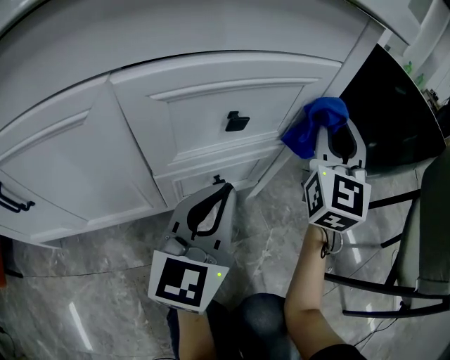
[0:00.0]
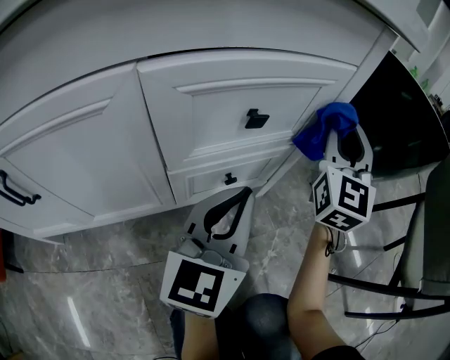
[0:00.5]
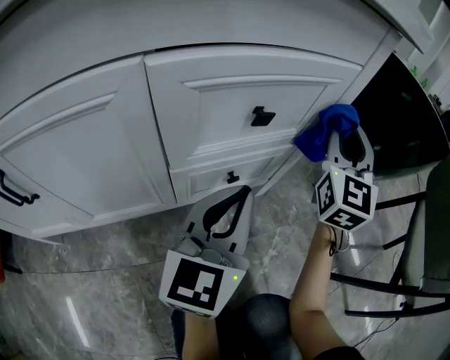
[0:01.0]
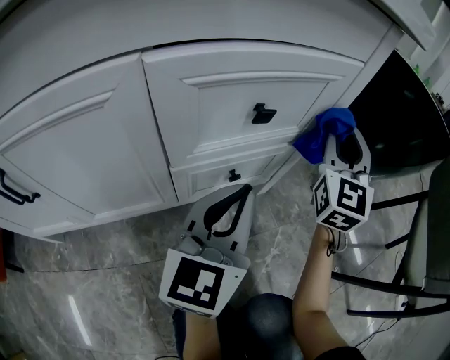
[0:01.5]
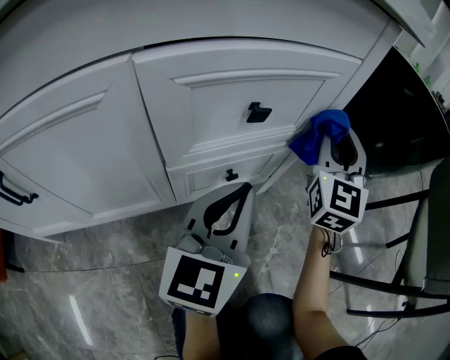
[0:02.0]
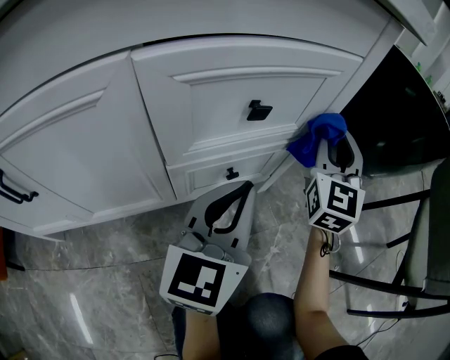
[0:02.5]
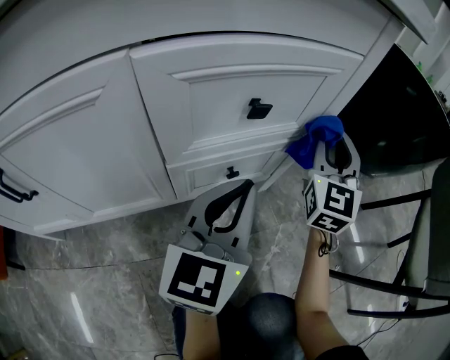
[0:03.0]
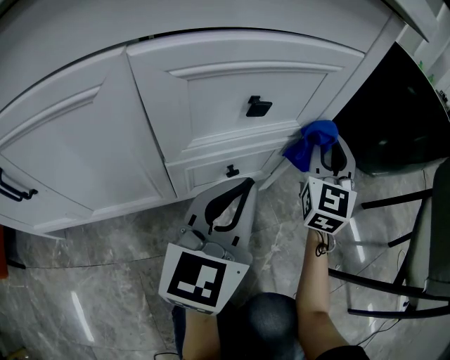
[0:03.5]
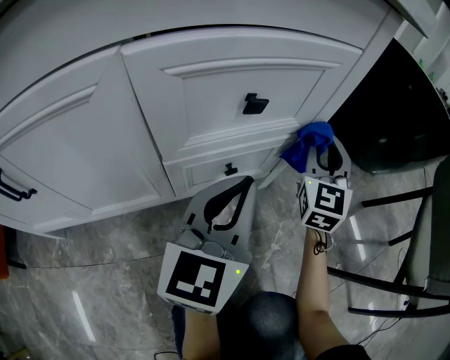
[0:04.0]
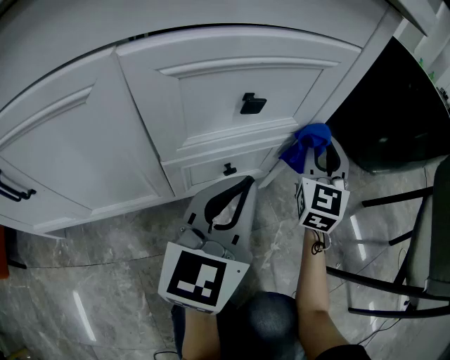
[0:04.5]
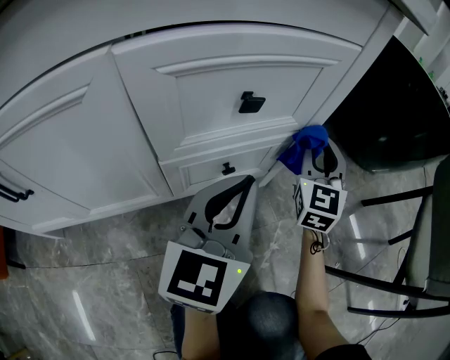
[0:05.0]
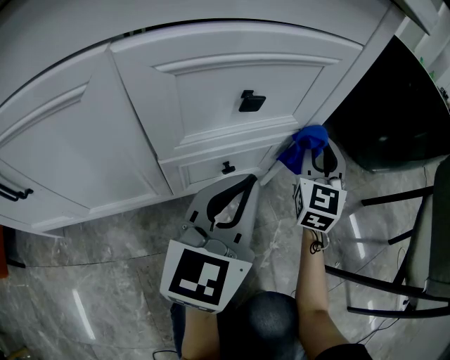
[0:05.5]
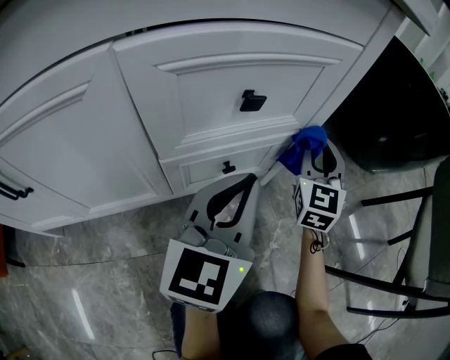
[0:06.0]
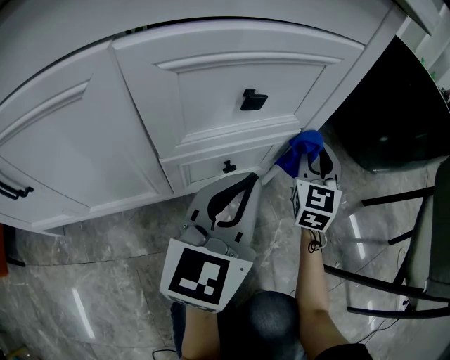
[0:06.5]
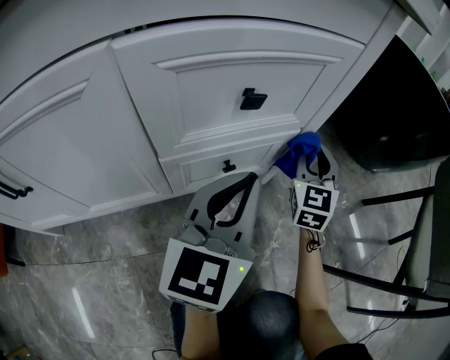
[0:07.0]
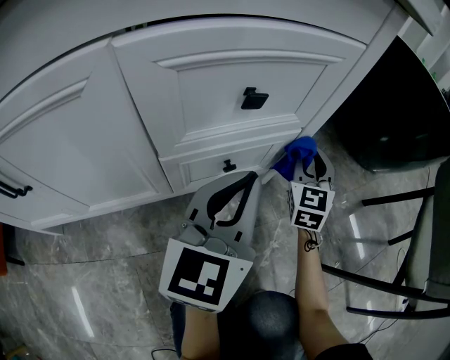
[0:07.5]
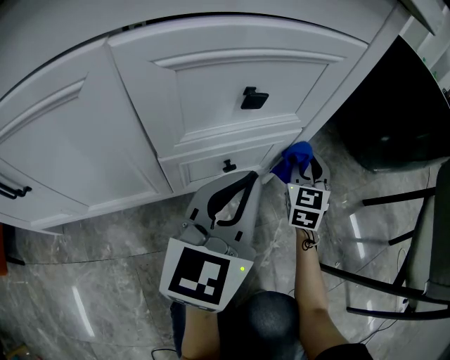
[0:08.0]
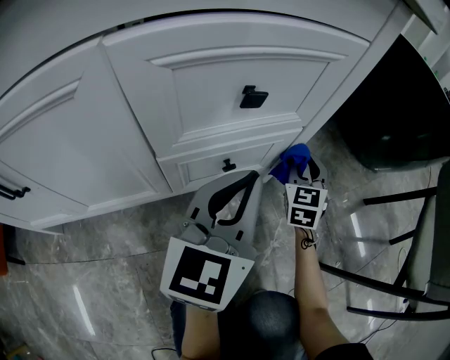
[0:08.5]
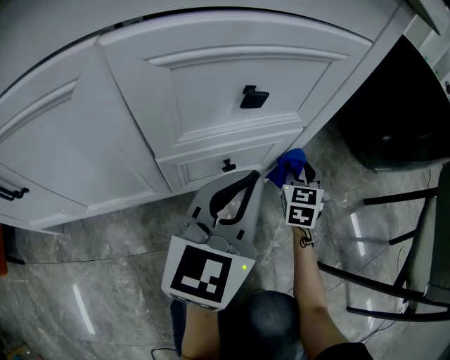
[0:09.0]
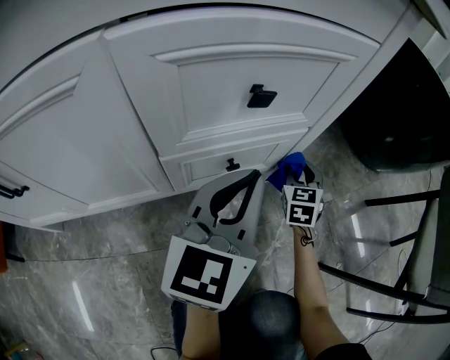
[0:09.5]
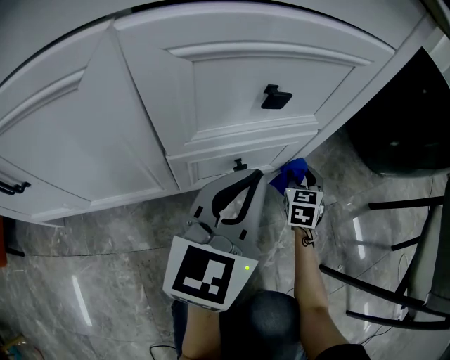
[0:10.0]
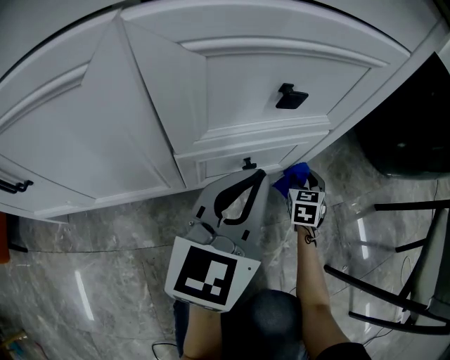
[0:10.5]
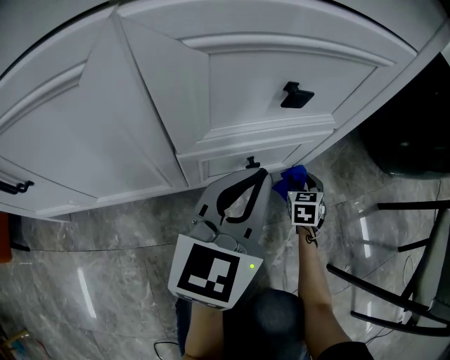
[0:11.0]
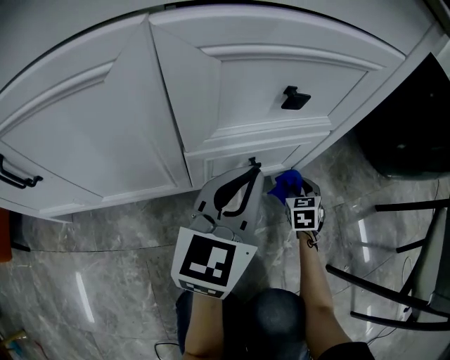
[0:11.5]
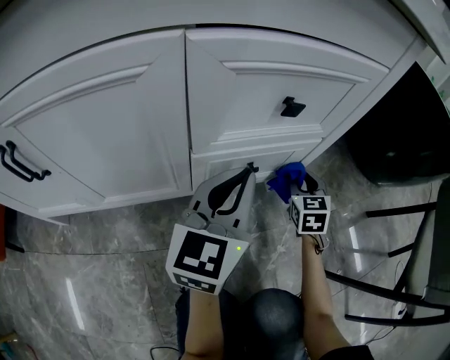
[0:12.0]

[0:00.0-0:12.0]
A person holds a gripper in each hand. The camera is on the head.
0:00.0 to 0:02.0: The grippers make only small movements.
0:02.0 to 0:04.0: The right gripper moves downward, roughly 5 cm.
0:04.0 to 0:06.0: The grippers stay close to where they were, moving slightly.
0:06.0 to 0:08.0: The right gripper heads downward, covering about 10 cm.
0:08.0 to 0:10.0: The right gripper goes about 10 cm downward.
0:10.0 to 0:12.0: The right gripper shifts some 5 cm upward.

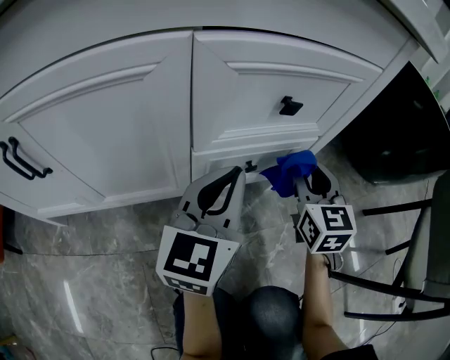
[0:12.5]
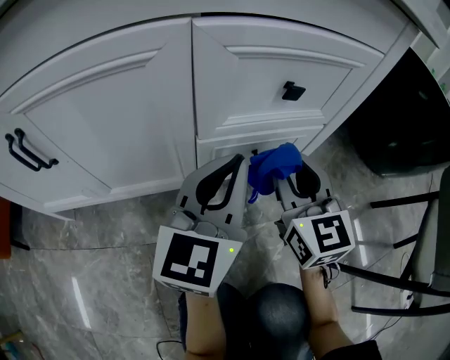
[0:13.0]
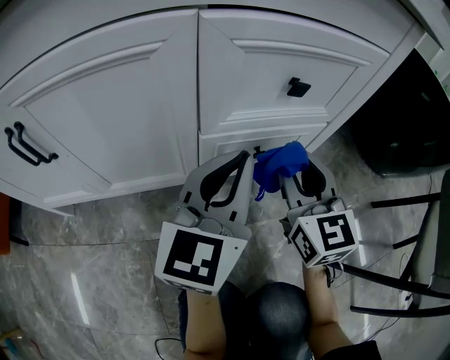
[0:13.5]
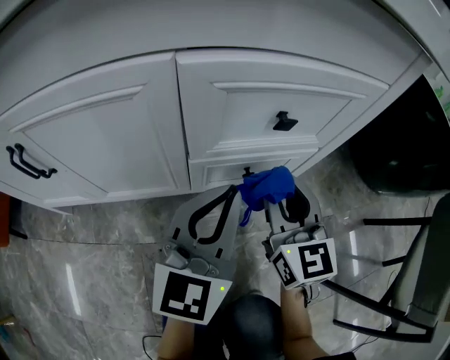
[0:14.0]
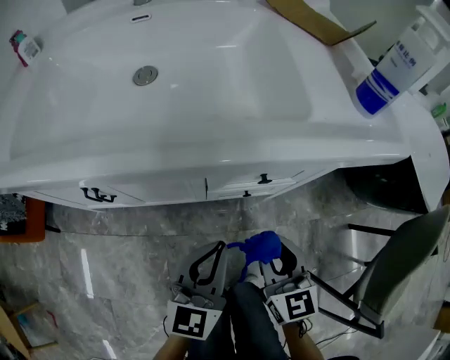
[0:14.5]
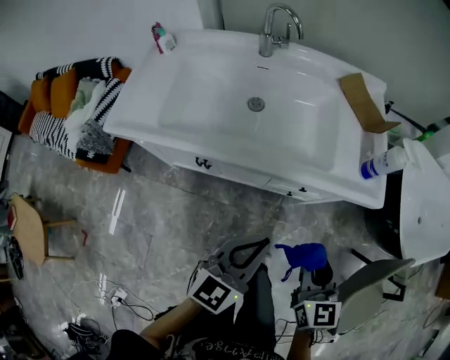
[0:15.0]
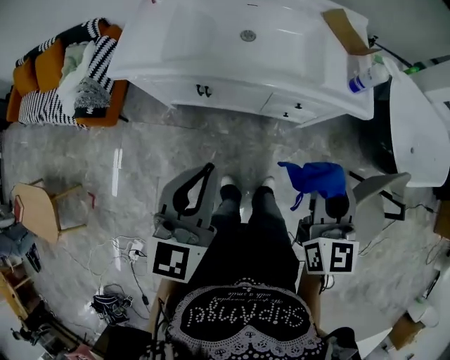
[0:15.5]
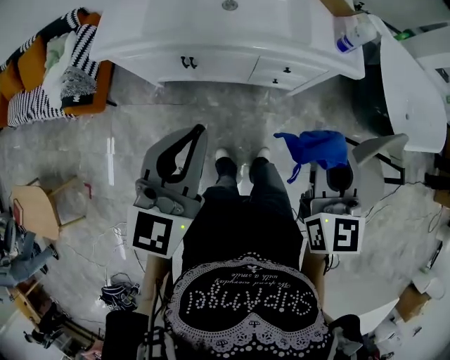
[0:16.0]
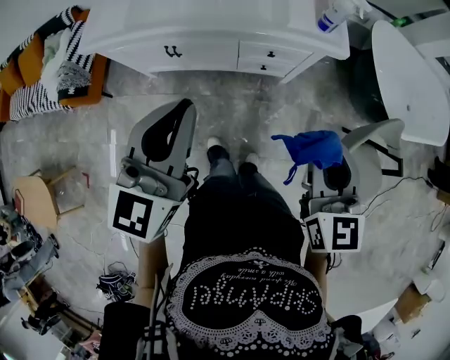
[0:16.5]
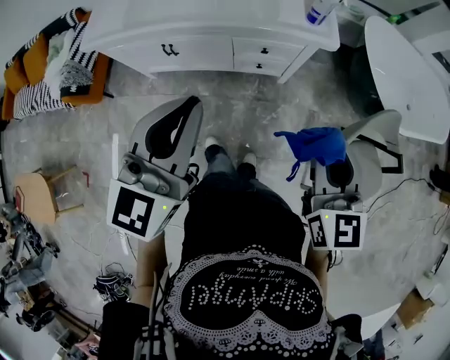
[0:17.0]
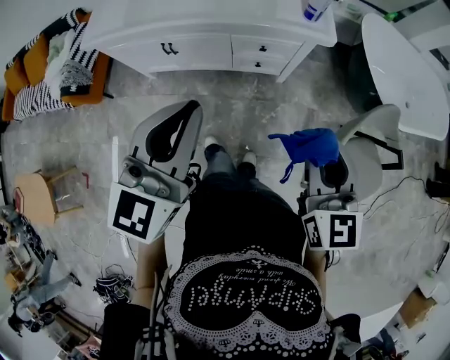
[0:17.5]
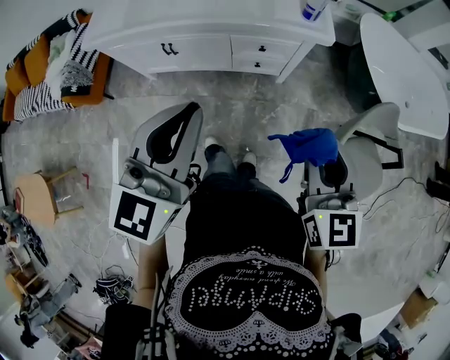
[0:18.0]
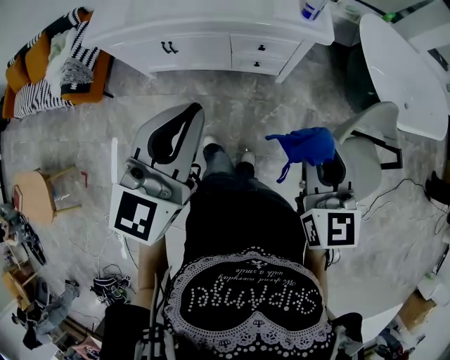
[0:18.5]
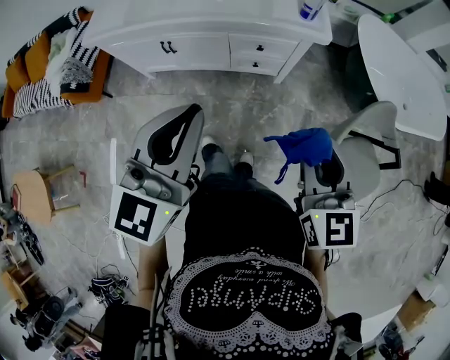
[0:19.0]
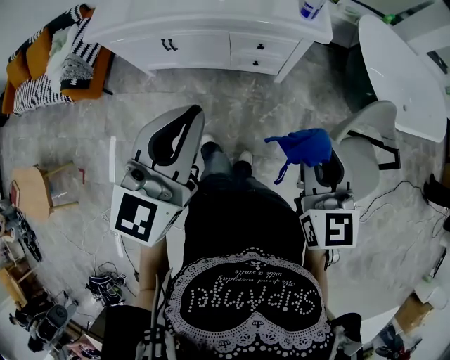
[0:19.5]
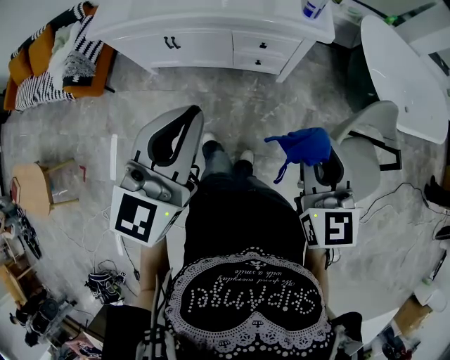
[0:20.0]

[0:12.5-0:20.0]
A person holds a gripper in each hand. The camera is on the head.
0:12.5 to 0:14.5: The right gripper goes approximately 25 cm upward, backward and to the left, and rotates some 20 degrees. The left gripper shifts some 20 cm upward and backward.
0:14.5 to 0:16.5: The left gripper goes approximately 50 cm upward; the right gripper shifts roughly 50 cm upward and backward.
0:16.5 to 0:18.0: The right gripper shifts about 5 cm backward, while the left gripper heads backward and to the right, covering about 10 cm.
0:18.0 to 0:20.0: The grippers make only small movements.

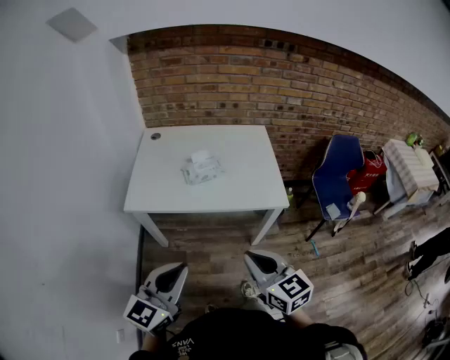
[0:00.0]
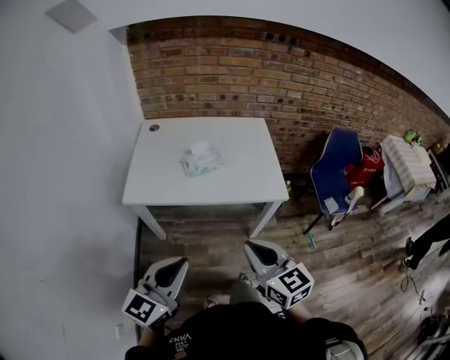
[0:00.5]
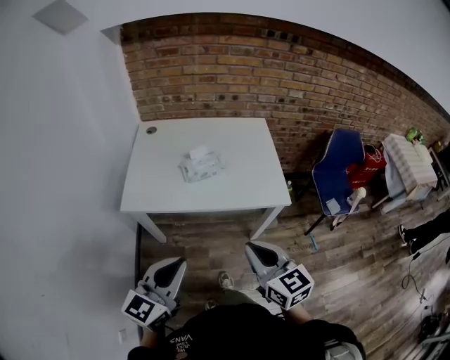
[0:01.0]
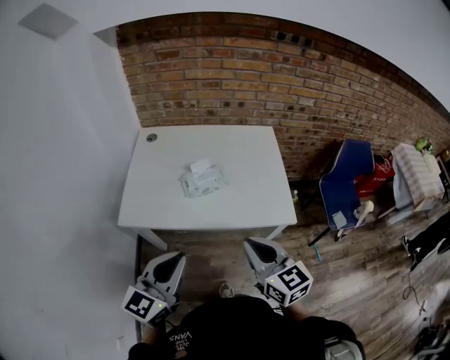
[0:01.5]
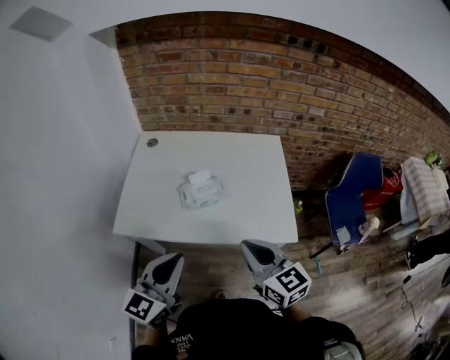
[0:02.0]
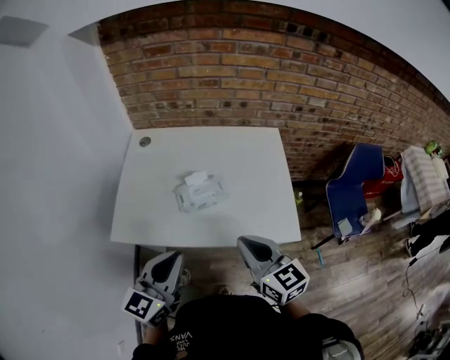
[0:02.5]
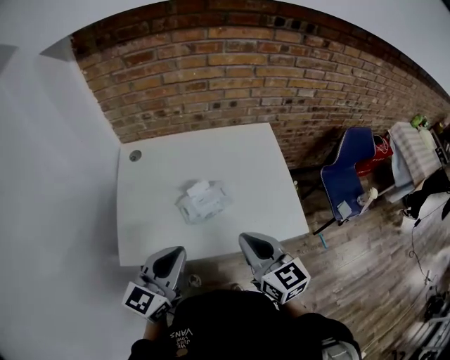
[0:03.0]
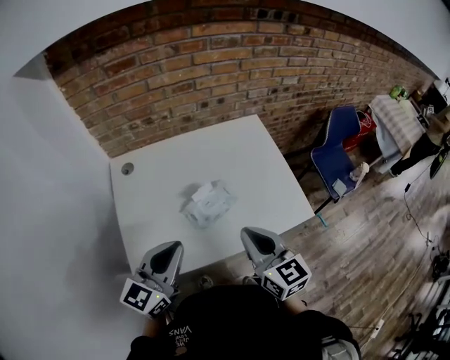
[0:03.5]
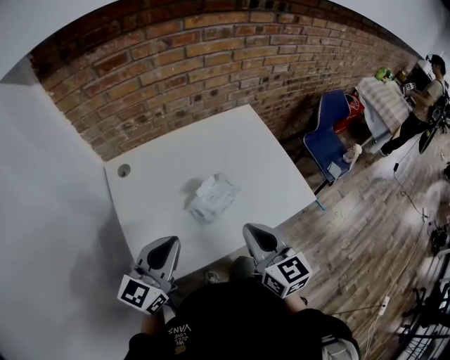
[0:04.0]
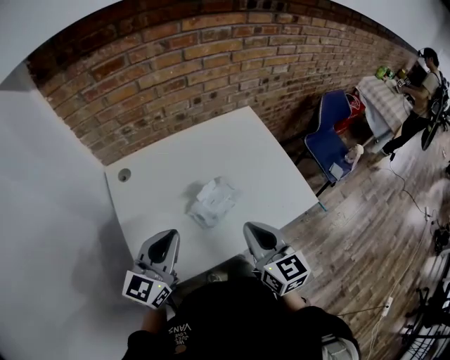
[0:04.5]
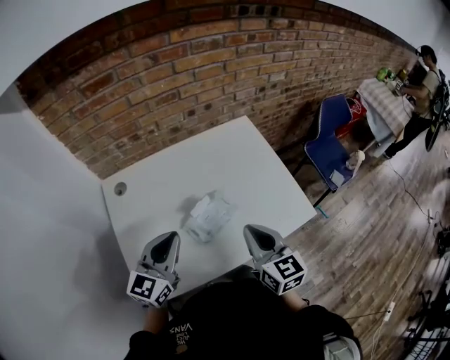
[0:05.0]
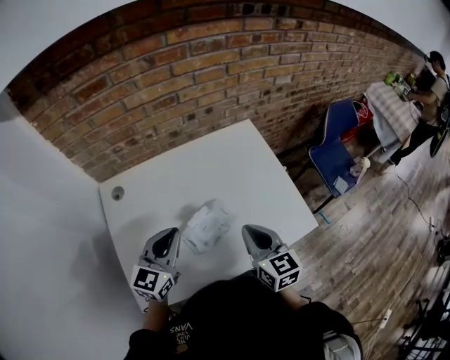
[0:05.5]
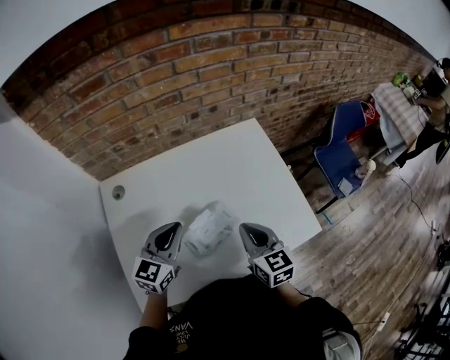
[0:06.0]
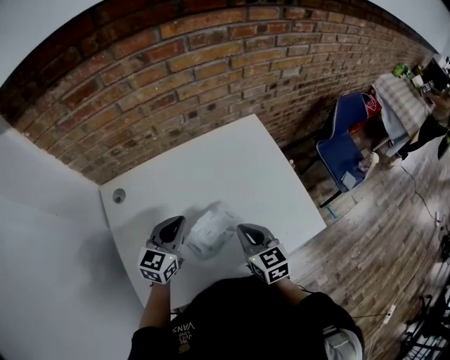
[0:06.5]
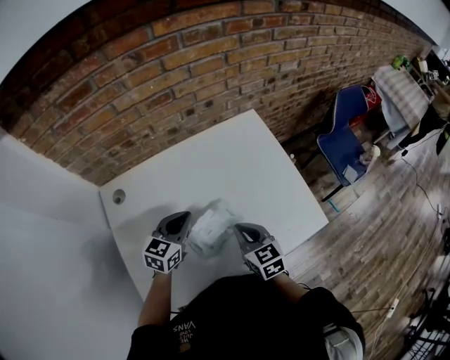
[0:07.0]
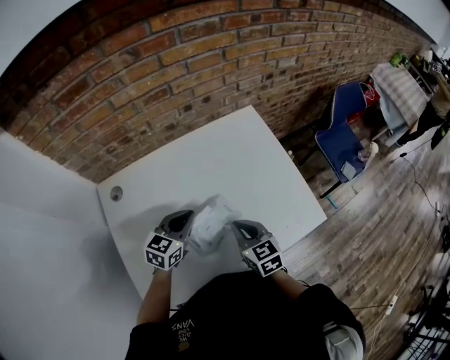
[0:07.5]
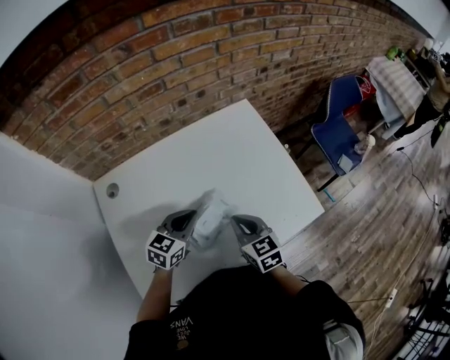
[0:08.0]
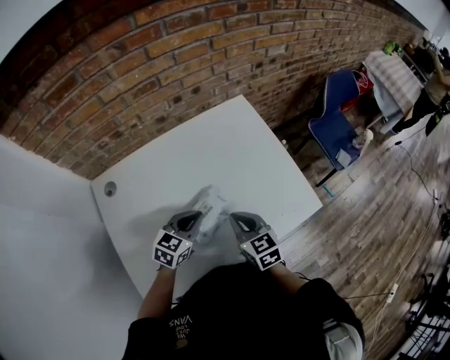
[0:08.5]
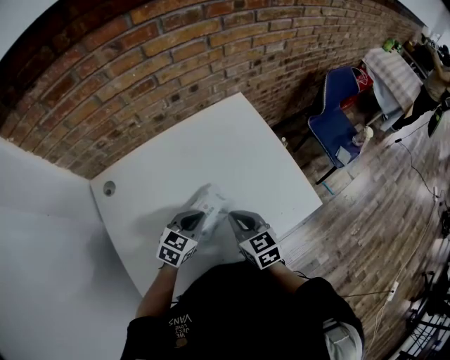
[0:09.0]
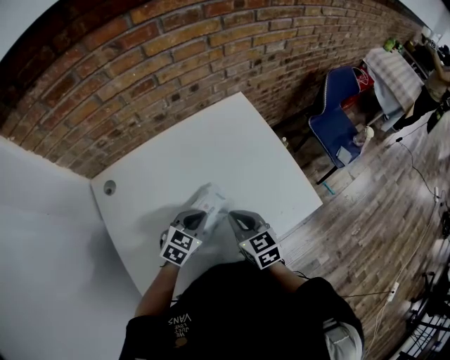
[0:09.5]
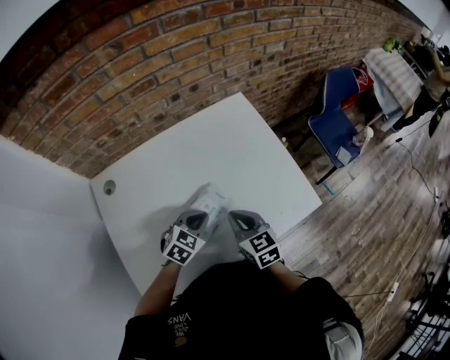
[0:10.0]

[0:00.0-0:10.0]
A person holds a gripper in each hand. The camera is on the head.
0:00.0 to 0:02.0: The grippers both shift forward by some 25 cm.
0:02.0 to 0:04.0: The right gripper ends up approximately 20 cm from where it was, and rotates roughly 30 degrees; the left gripper changes place by about 25 cm, and turns by approximately 30 degrees.
0:04.0 to 0:06.0: The grippers both shift forward and downward by approximately 20 cm.
0:06.0 to 0:08.0: The right gripper goes approximately 5 cm downward; the left gripper is displaced downward and to the right by about 10 cm, and swivels roughly 20 degrees.
0:08.0 to 0:10.0: The left gripper travels downward and to the right by some 10 cm, and changes its angle by about 20 degrees.
